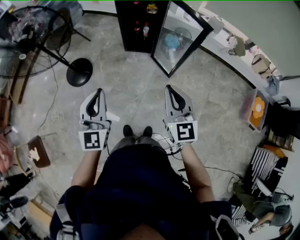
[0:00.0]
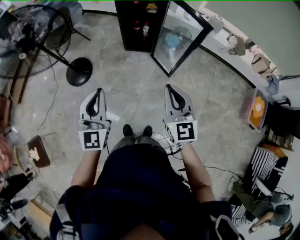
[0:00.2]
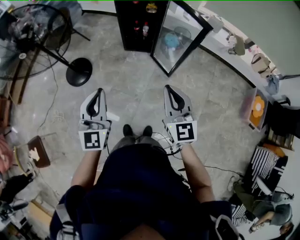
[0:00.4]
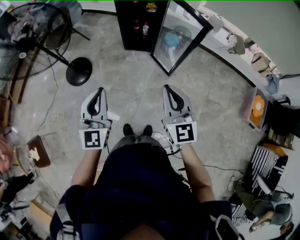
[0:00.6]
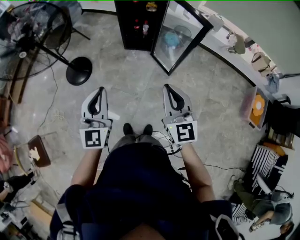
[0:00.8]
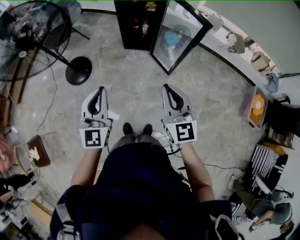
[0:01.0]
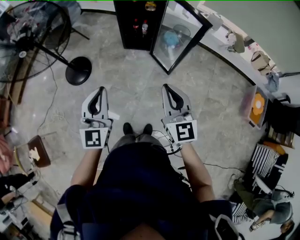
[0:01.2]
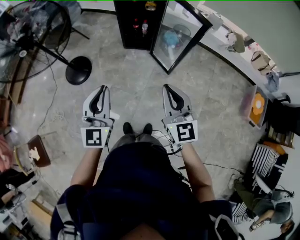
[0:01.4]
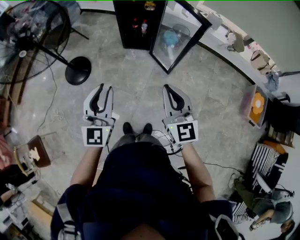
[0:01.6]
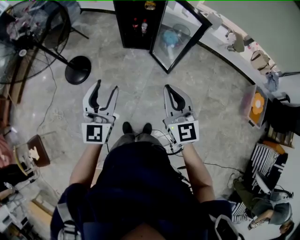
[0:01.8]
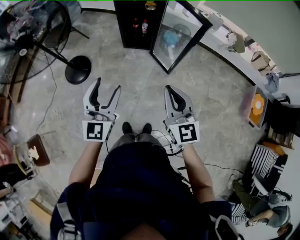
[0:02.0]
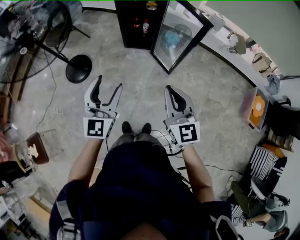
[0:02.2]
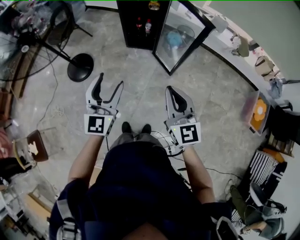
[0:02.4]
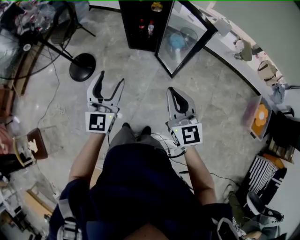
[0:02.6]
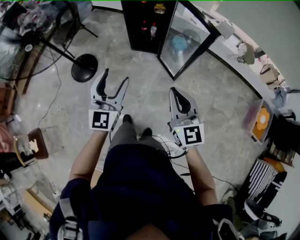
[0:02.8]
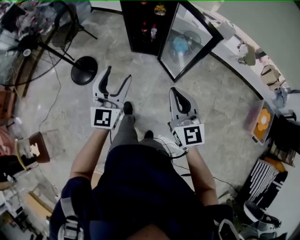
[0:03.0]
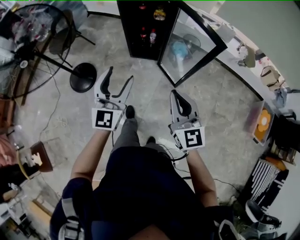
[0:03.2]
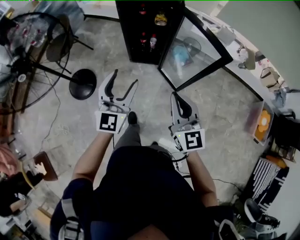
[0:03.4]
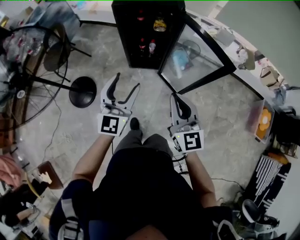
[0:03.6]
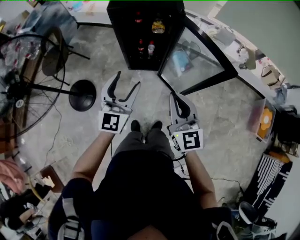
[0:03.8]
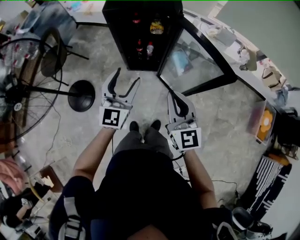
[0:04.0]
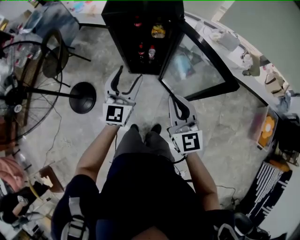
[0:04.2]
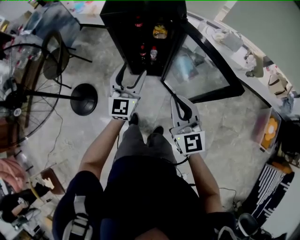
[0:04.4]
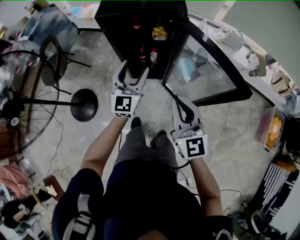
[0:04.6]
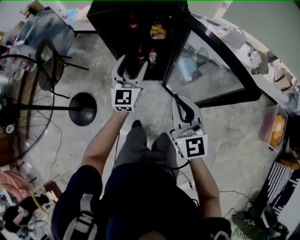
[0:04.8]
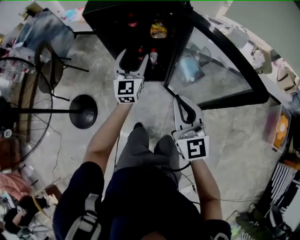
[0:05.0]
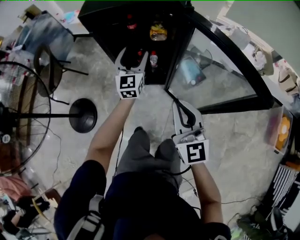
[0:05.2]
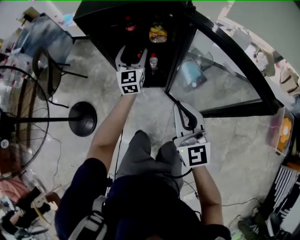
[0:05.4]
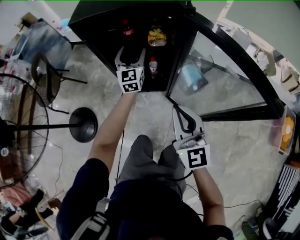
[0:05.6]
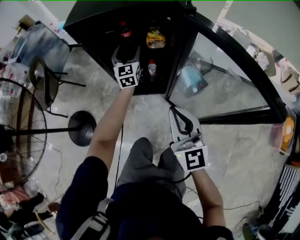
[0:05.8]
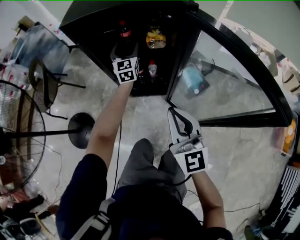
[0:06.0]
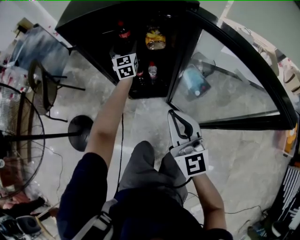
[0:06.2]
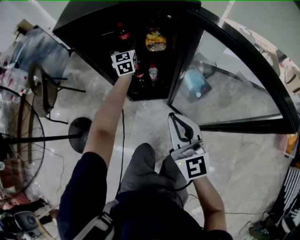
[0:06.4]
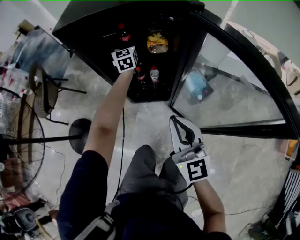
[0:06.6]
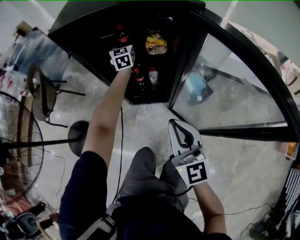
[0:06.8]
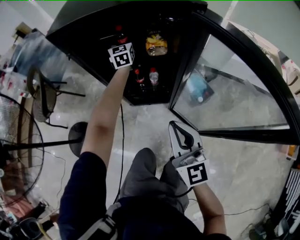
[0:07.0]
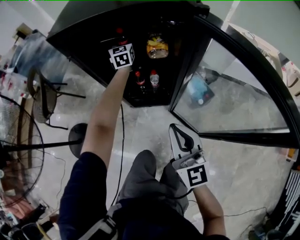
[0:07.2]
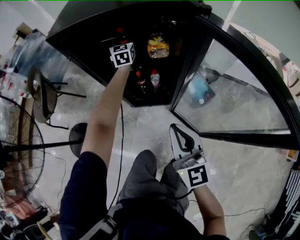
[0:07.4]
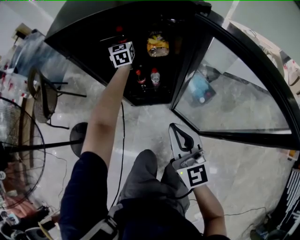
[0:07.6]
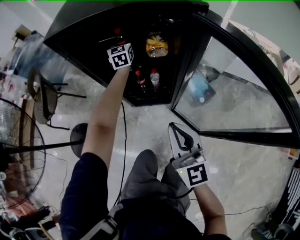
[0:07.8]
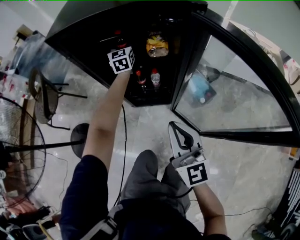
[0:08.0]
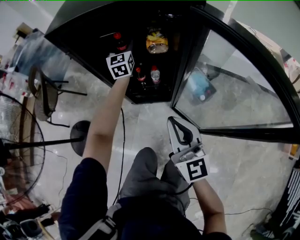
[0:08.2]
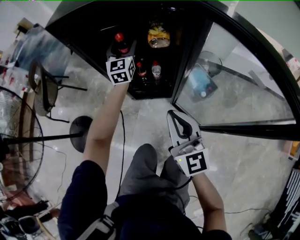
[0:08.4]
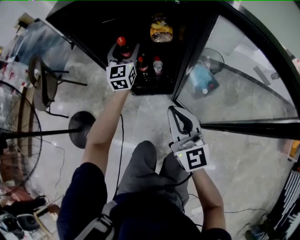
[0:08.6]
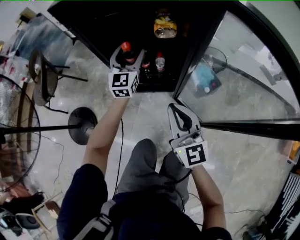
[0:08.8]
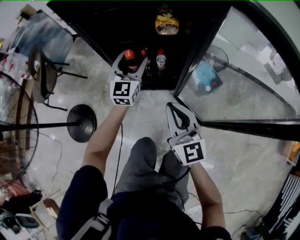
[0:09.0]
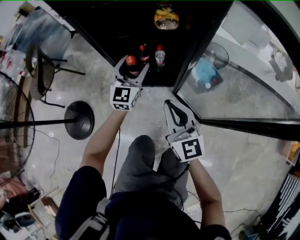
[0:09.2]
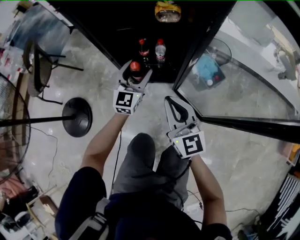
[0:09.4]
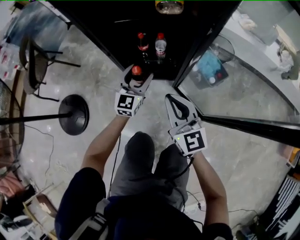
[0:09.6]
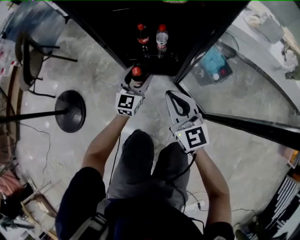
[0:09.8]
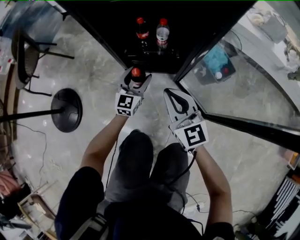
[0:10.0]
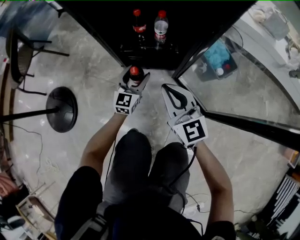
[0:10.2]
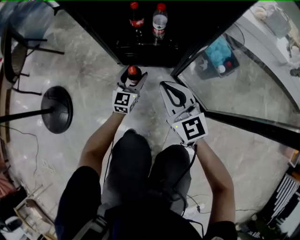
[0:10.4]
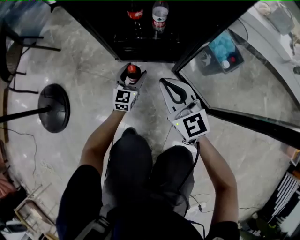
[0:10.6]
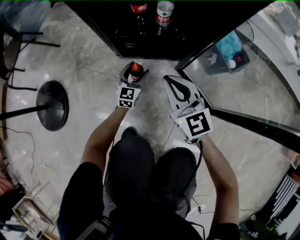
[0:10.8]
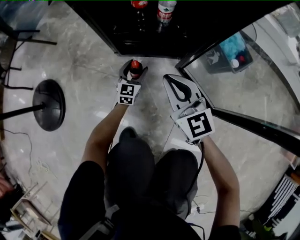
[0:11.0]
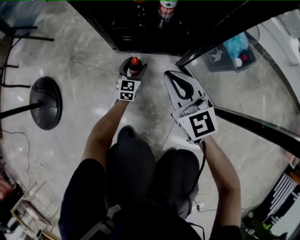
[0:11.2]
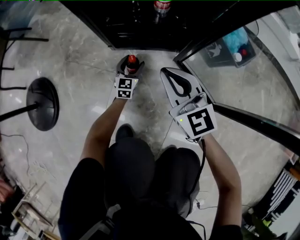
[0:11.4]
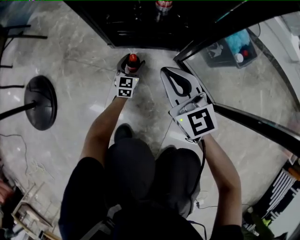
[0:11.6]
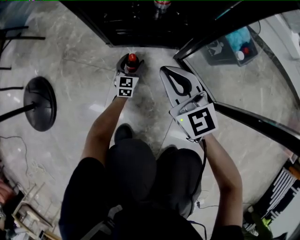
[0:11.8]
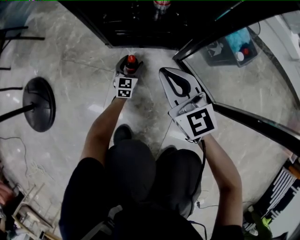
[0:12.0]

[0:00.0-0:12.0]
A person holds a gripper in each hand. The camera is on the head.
0:00.0 to 0:01.6: There are only small adjustments of the grippers.
0:01.6 to 0:03.0: The left gripper goes roughly 10 cm forward and to the right, and opens up. The right gripper shifts roughly 5 cm forward.
0:03.0 to 0:04.4: The two grippers go roughly 25 cm forward.
0:04.4 to 0:06.0: The right gripper moves downward and forward, approximately 20 cm. The left gripper moves forward and downward, some 40 cm.
0:06.0 to 0:07.6: The right gripper moves downward, approximately 5 cm; the left gripper shifts roughly 15 cm forward.
0:07.6 to 0:09.0: The left gripper goes some 25 cm backward. Meanwhile the right gripper goes some 5 cm downward.
0:09.0 to 0:10.4: The right gripper moves downward, roughly 25 cm; the left gripper moves downward, roughly 40 cm.
0:10.4 to 0:12.0: The right gripper goes some 10 cm downward. Meanwhile the left gripper heads downward, covering roughly 25 cm.

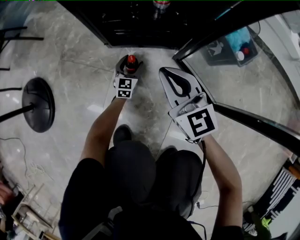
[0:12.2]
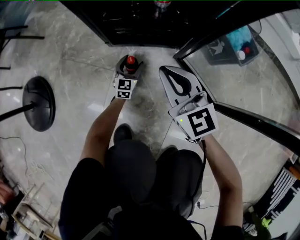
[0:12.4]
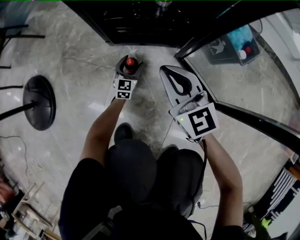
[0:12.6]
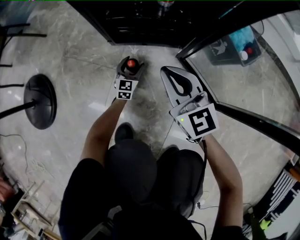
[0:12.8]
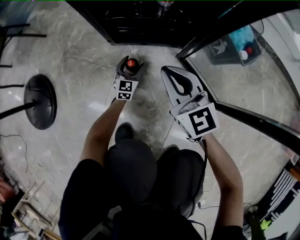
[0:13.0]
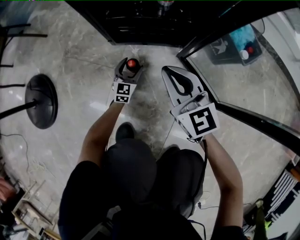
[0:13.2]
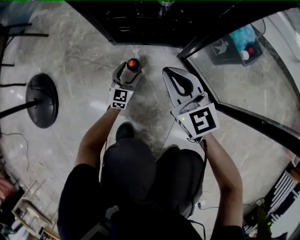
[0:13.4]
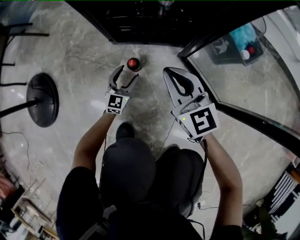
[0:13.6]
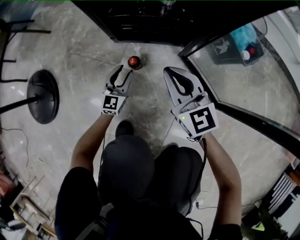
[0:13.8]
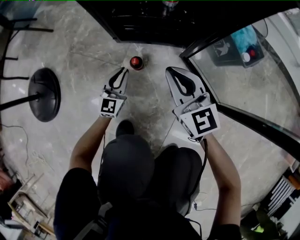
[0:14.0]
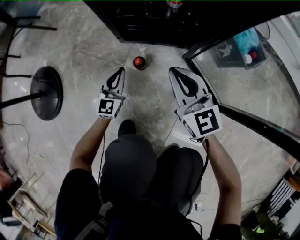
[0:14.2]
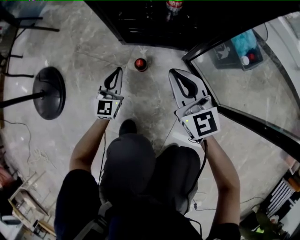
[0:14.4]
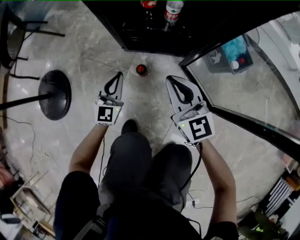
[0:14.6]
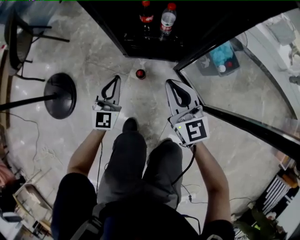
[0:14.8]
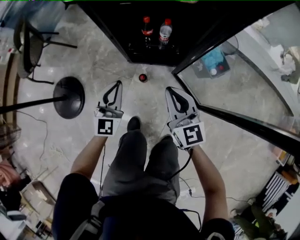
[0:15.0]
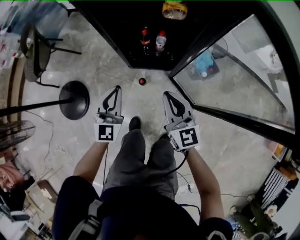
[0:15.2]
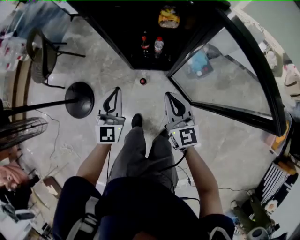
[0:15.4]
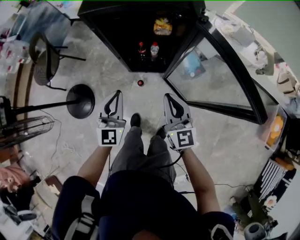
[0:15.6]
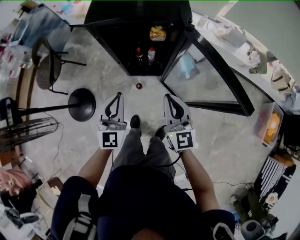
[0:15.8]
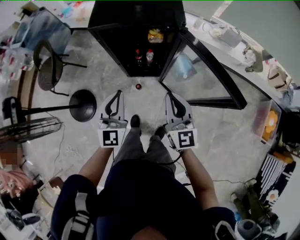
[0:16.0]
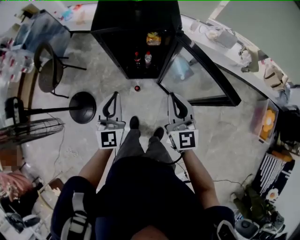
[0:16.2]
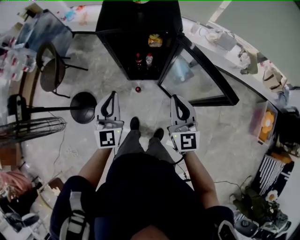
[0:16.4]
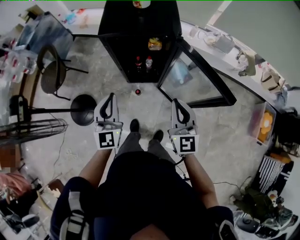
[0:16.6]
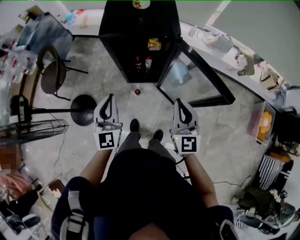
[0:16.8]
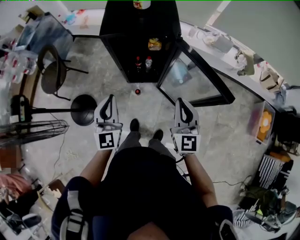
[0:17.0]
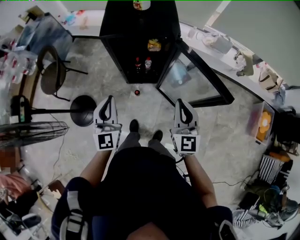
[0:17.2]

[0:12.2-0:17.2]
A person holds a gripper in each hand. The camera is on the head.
0:12.2 to 0:13.8: The left gripper heads upward, backward and to the left, covering some 15 cm, and closes.
0:13.8 to 0:15.6: The grippers both shift upward by some 60 cm. The left gripper closes up.
0:15.6 to 0:17.2: The two grippers go some 20 cm upward.

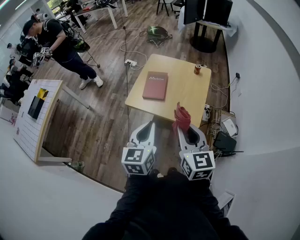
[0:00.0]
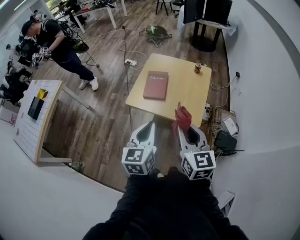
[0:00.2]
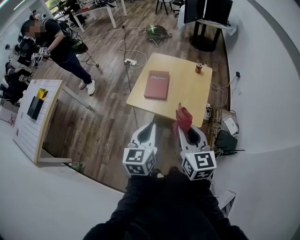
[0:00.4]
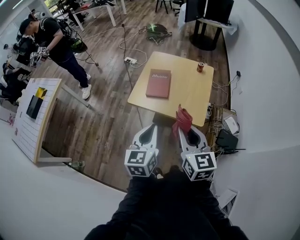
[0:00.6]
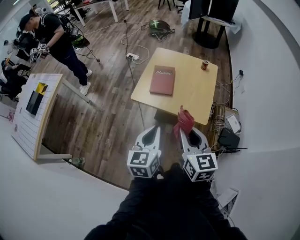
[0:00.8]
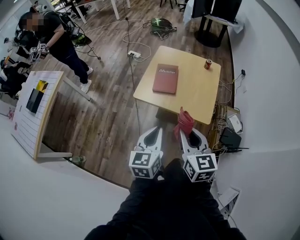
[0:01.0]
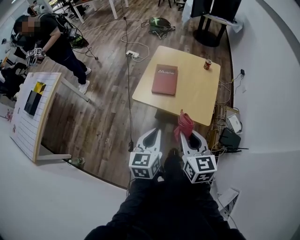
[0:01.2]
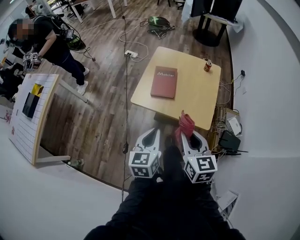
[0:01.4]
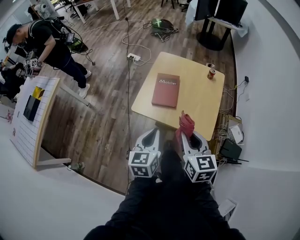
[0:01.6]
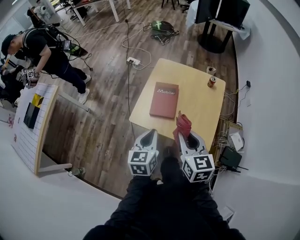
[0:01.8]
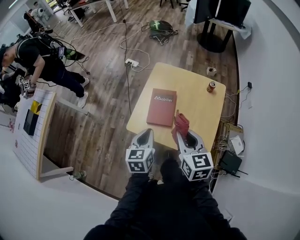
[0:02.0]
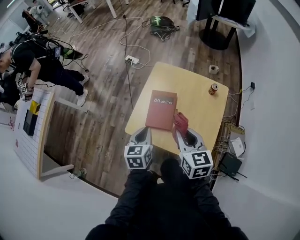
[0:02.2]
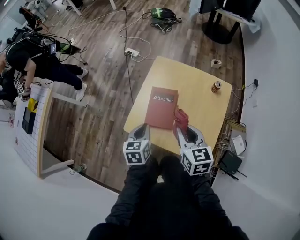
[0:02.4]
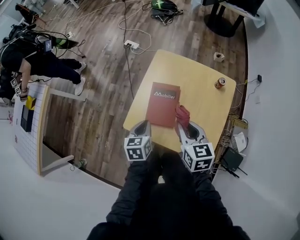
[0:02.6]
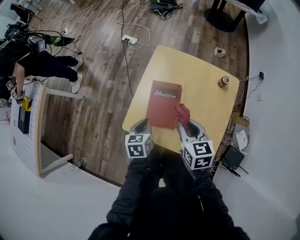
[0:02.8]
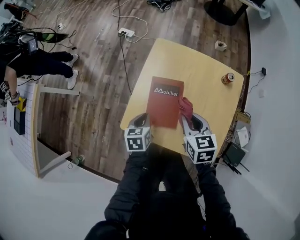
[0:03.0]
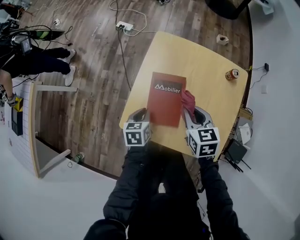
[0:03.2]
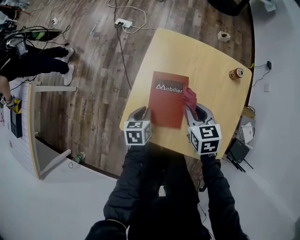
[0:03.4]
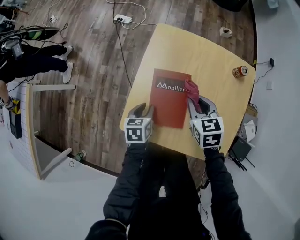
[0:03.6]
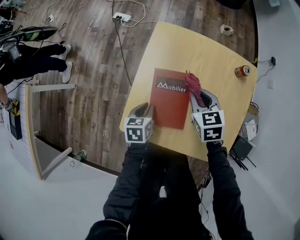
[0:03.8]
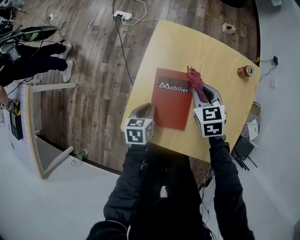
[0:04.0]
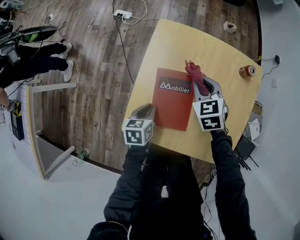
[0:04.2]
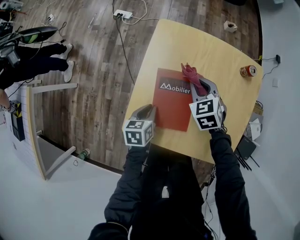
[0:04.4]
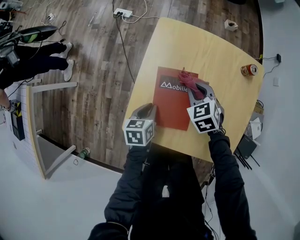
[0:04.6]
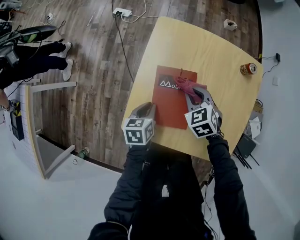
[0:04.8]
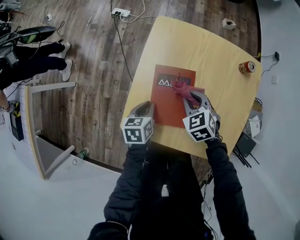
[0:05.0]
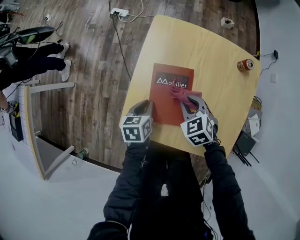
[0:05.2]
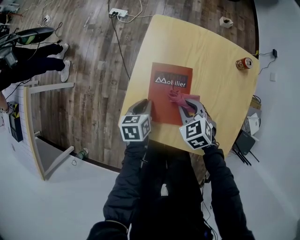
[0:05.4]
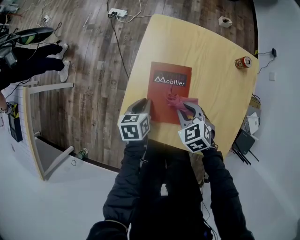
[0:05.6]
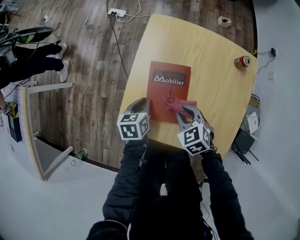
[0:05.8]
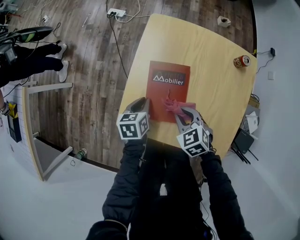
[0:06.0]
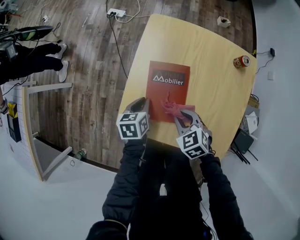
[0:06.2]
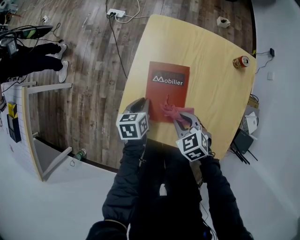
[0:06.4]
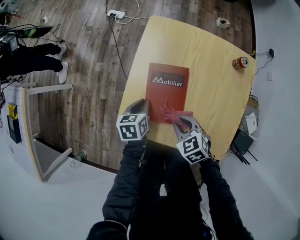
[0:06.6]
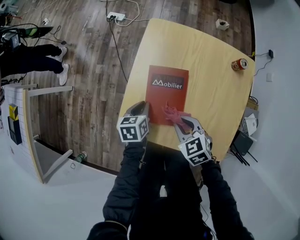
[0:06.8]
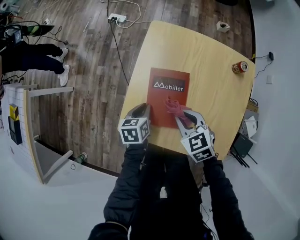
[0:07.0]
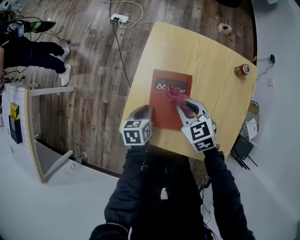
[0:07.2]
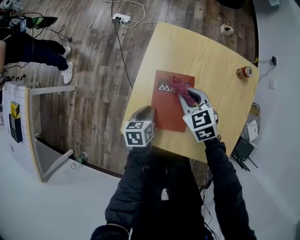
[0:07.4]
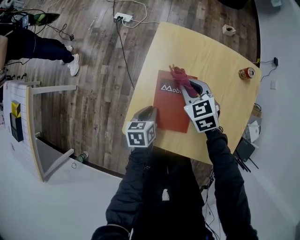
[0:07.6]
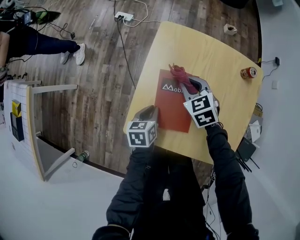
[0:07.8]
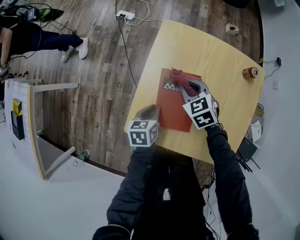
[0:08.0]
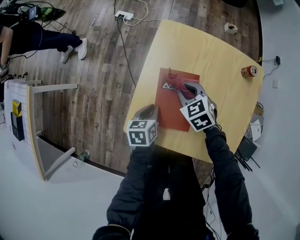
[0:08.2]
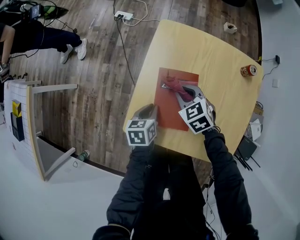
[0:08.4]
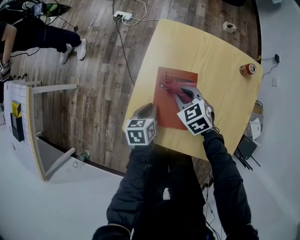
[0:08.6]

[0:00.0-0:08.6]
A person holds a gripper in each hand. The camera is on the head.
0:00.0 to 0:01.4: The two grippers go about 10 cm downward and to the left.
0:01.4 to 0:02.8: Both grippers move forward and downward, some 40 cm. The left gripper swivels approximately 20 degrees.
0:02.8 to 0:04.4: The left gripper goes roughly 15 cm downward and forward. Meanwhile the right gripper travels downward and forward by about 25 cm, and changes its angle by about 30 degrees.
0:04.4 to 0:05.8: The right gripper travels backward by about 15 cm.
0:05.8 to 0:07.2: The right gripper heads forward, covering about 5 cm.
0:07.2 to 0:08.6: The right gripper moves some 5 cm.
